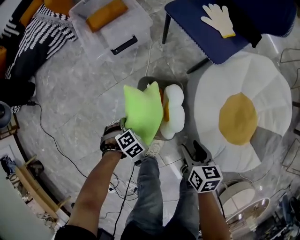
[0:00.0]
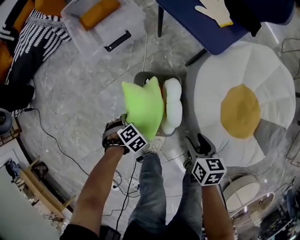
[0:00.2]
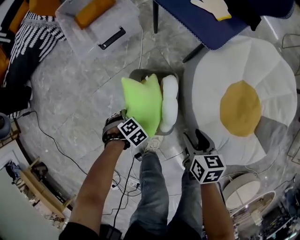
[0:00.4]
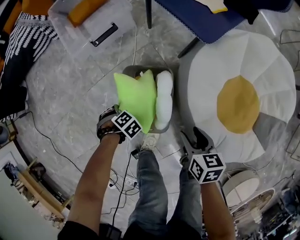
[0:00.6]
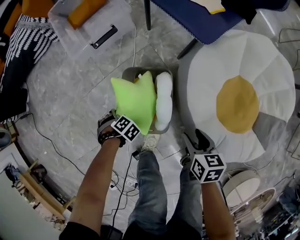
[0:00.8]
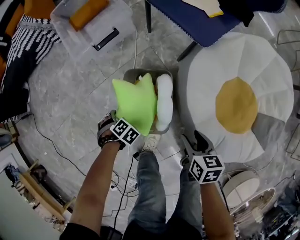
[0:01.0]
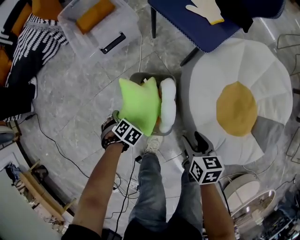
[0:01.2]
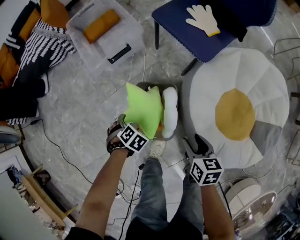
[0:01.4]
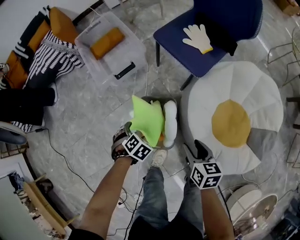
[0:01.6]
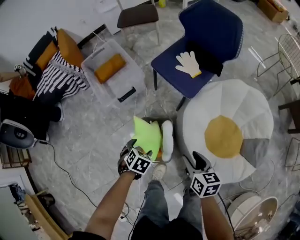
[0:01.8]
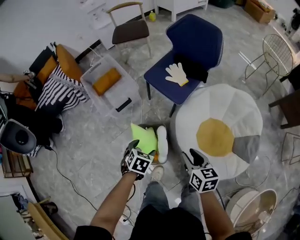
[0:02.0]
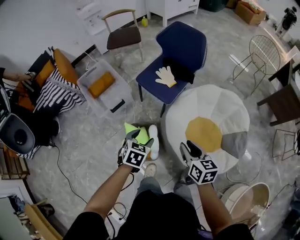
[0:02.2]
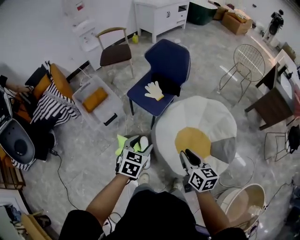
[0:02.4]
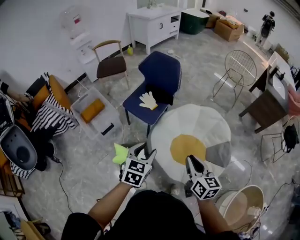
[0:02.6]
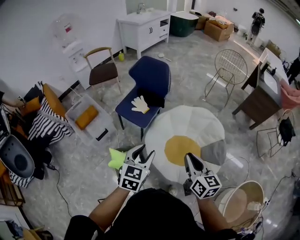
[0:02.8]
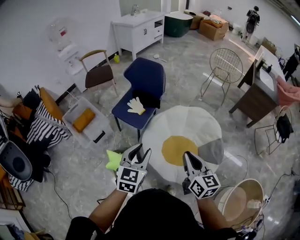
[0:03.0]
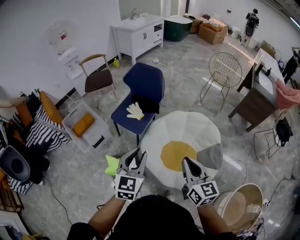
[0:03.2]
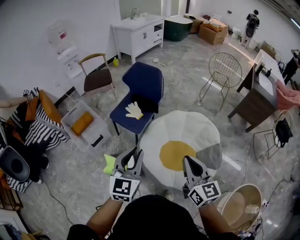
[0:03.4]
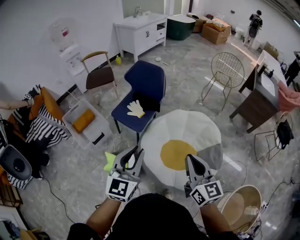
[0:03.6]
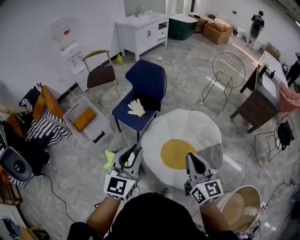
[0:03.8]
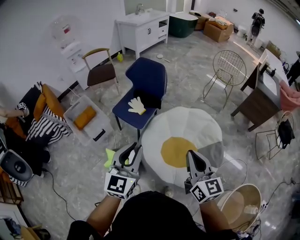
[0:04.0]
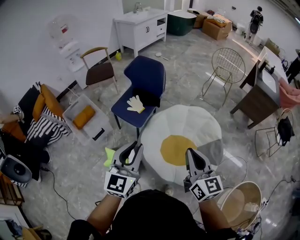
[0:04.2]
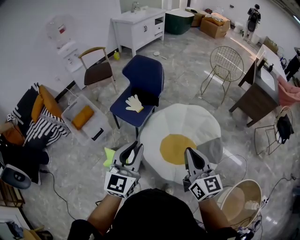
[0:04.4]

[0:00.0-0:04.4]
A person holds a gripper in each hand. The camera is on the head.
0:00.0 to 0:01.4: The left gripper goes downward and returns, about 10 cm each way, and opens its fingers.
0:01.4 to 0:03.0: Both grippers travel together upward, roughly 50 cm. The left gripper tilts its fingers roughly 60 degrees upward, and closes its fingers; the right gripper tilts its fingers approximately 40 degrees upward, and closes up.
0:03.0 to 0:04.4: The left gripper shifts roughly 5 cm upward. Meanwhile the right gripper moves some 5 cm.

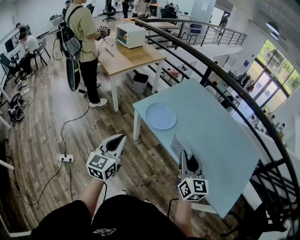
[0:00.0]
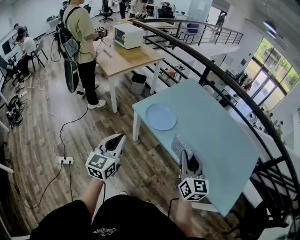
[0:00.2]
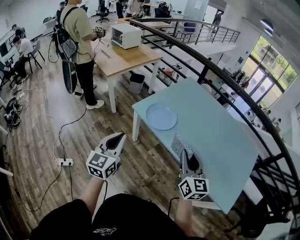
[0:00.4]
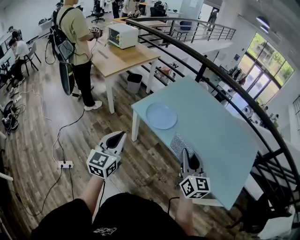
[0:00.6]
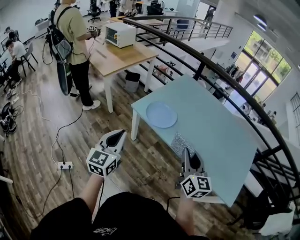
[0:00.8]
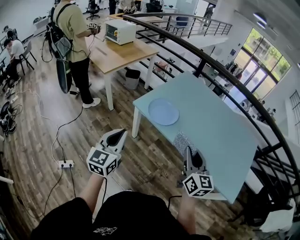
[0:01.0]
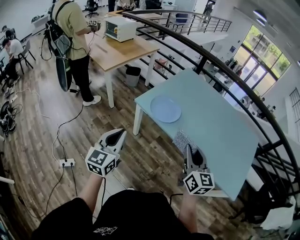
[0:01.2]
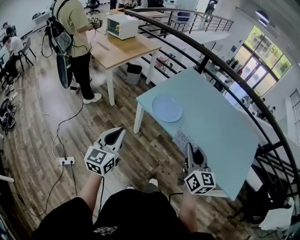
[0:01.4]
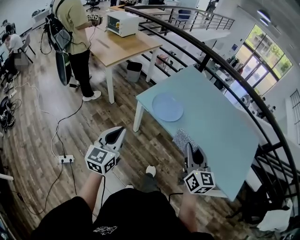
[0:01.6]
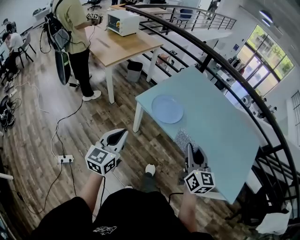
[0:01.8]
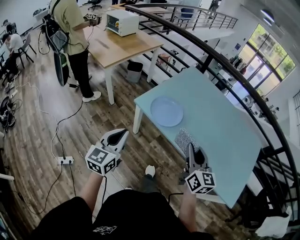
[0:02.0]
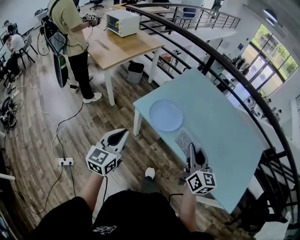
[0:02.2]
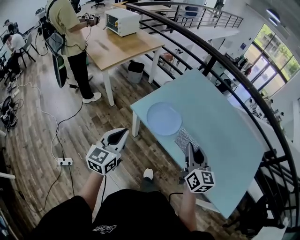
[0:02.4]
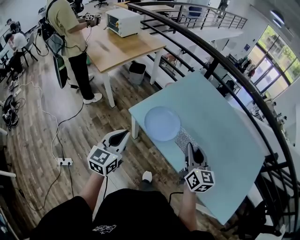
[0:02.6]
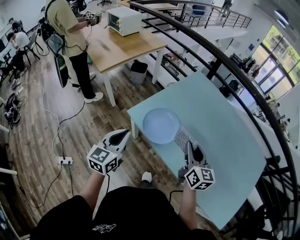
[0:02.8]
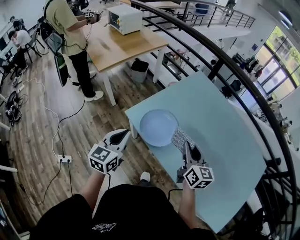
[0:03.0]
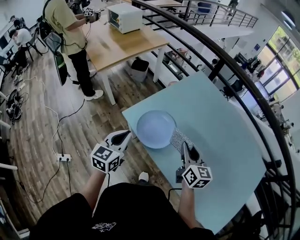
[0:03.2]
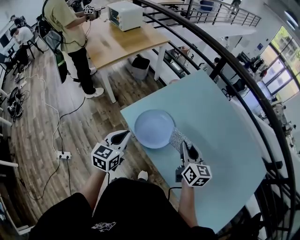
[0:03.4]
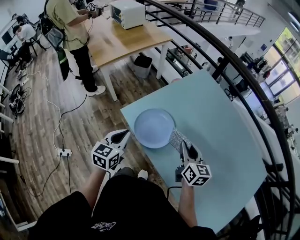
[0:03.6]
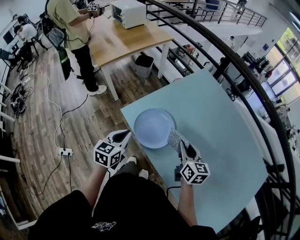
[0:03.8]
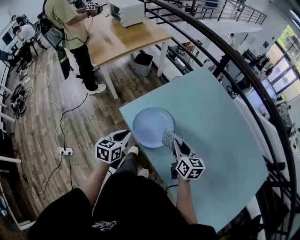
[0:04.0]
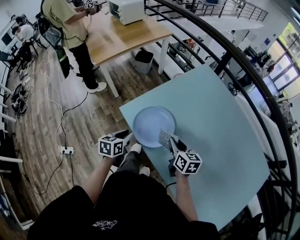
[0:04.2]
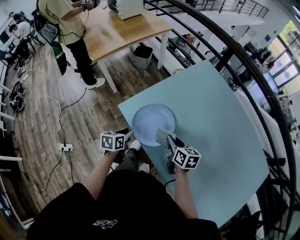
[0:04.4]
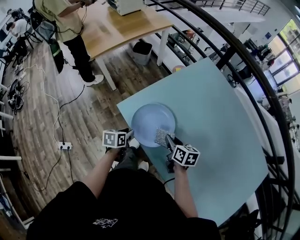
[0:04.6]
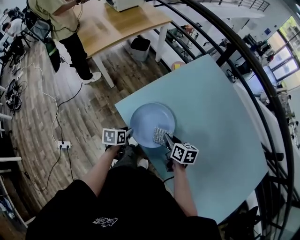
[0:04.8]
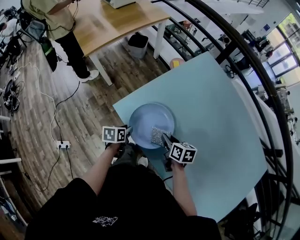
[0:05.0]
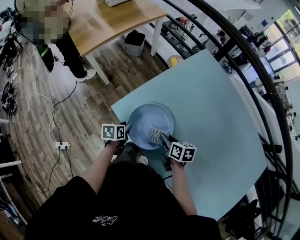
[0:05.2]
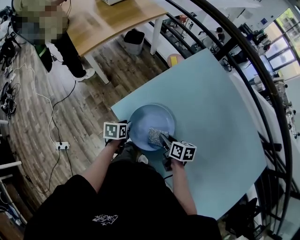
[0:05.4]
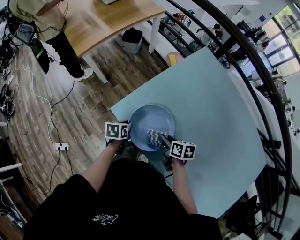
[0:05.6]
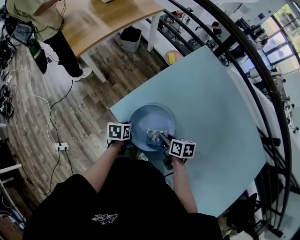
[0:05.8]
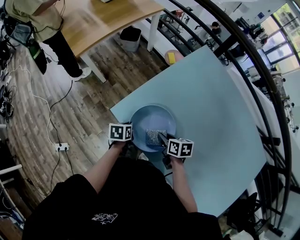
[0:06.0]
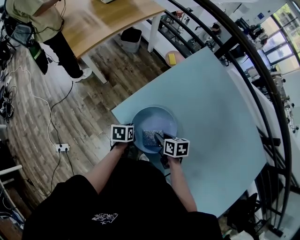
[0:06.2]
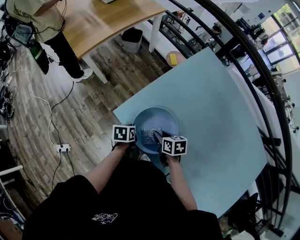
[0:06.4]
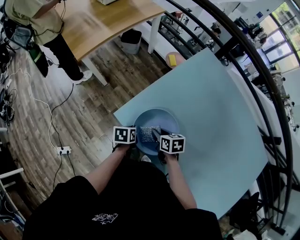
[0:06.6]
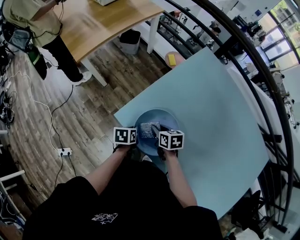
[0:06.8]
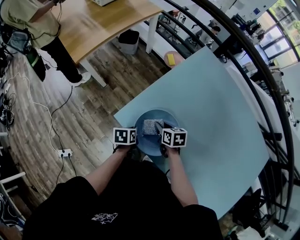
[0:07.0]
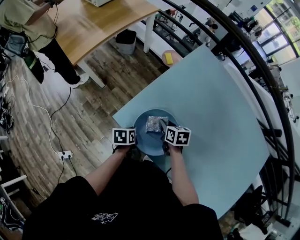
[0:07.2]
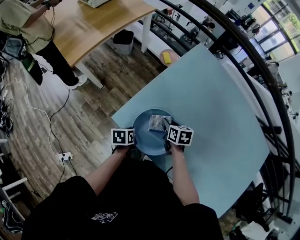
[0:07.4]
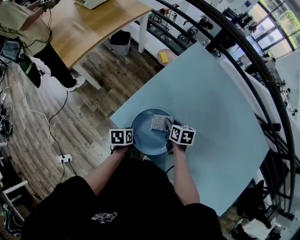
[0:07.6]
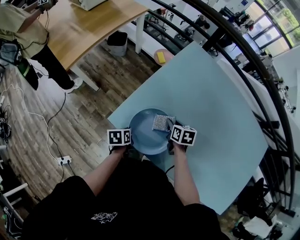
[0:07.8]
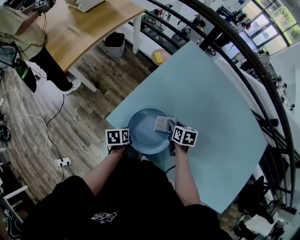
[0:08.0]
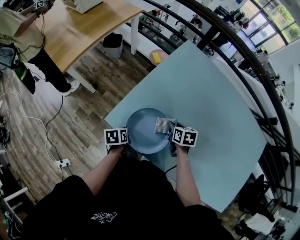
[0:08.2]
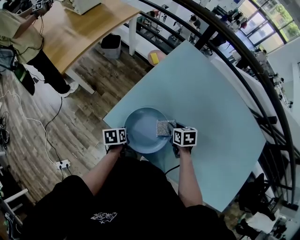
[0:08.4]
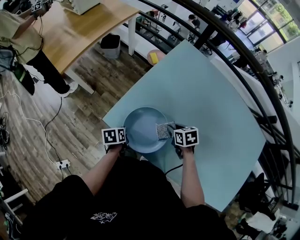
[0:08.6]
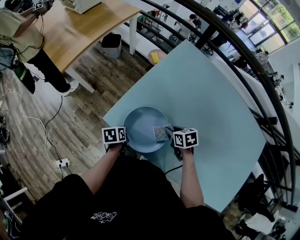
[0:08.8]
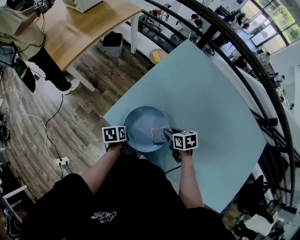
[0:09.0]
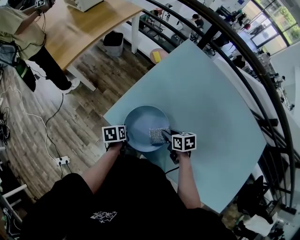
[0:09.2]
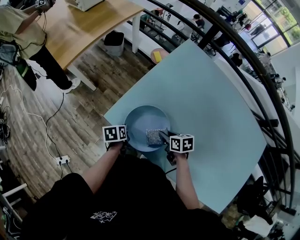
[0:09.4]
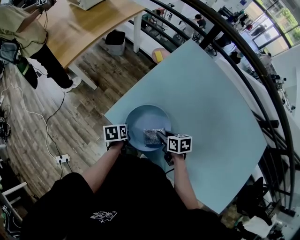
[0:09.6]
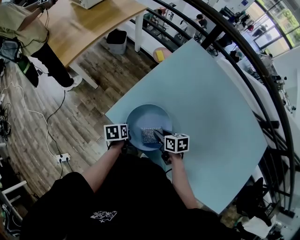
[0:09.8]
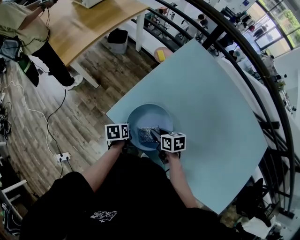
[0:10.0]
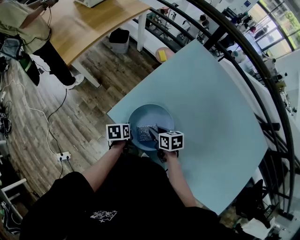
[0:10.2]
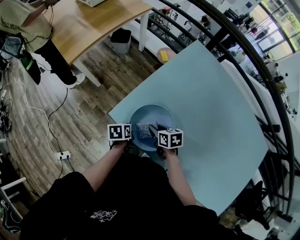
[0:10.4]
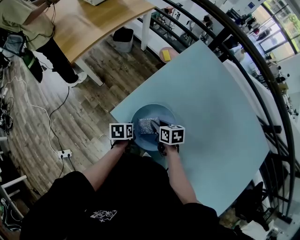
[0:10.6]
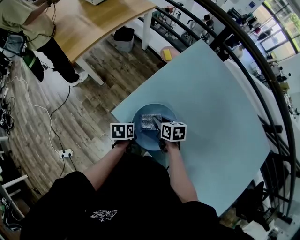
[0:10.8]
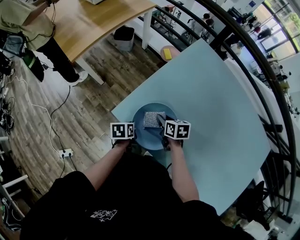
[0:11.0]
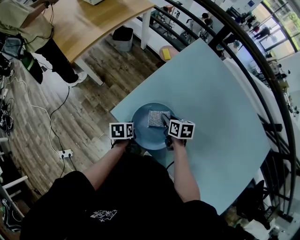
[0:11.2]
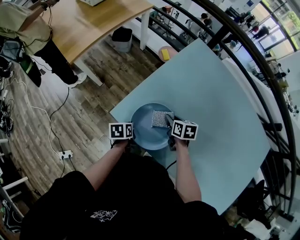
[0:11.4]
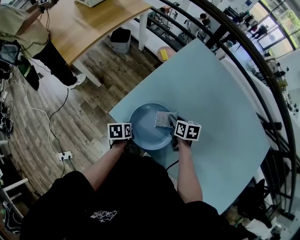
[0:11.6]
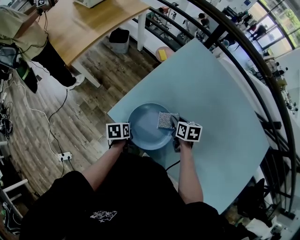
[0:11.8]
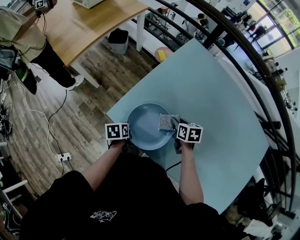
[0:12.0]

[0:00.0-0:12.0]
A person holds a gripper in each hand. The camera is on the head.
0:00.0 to 0:01.6: The two grippers go roughly 10 cm to the left.
0:01.6 to 0:03.0: The left gripper heads forward and to the right, covering some 25 cm. The right gripper heads forward, covering some 25 cm.
0:03.0 to 0:04.4: The right gripper heads downward and forward, covering about 20 cm, and swivels about 30 degrees, while the left gripper shifts some 20 cm downward, rotates roughly 40 degrees, and opens its fingers.
0:04.4 to 0:06.0: The right gripper goes some 10 cm downward, and turns by approximately 20 degrees; the left gripper is displaced forward and downward by roughly 10 cm.
0:06.0 to 0:07.6: The right gripper shifts about 10 cm forward, and goes to the left and returns, approximately 5 cm each way.
0:07.6 to 0:09.0: The right gripper is displaced backward by roughly 5 cm.
0:09.0 to 0:10.4: The right gripper moves to the left, approximately 10 cm.
0:10.4 to 0:12.0: The right gripper heads to the right, covering about 15 cm.

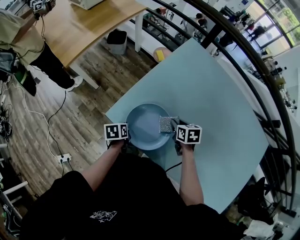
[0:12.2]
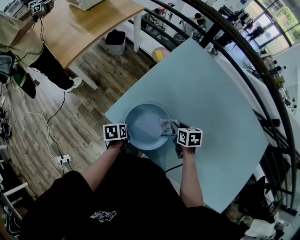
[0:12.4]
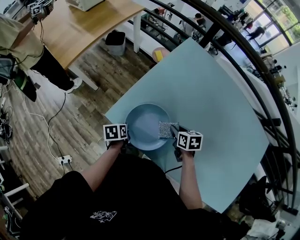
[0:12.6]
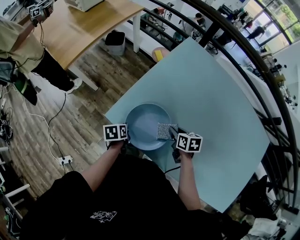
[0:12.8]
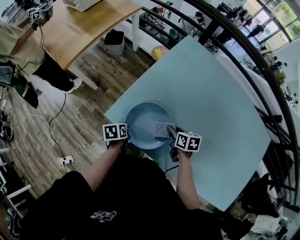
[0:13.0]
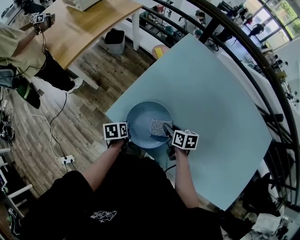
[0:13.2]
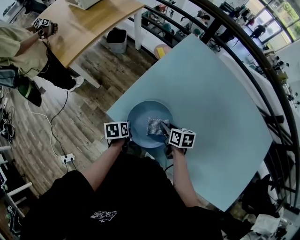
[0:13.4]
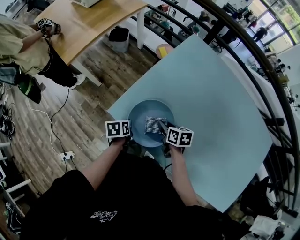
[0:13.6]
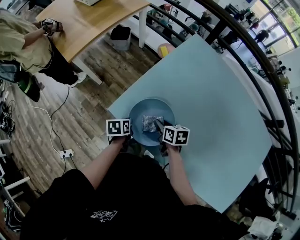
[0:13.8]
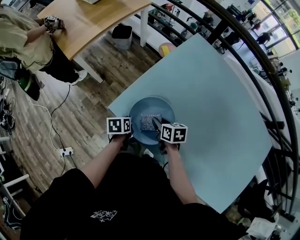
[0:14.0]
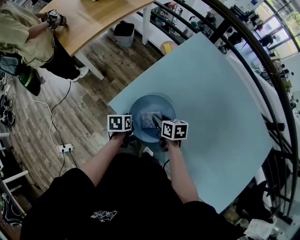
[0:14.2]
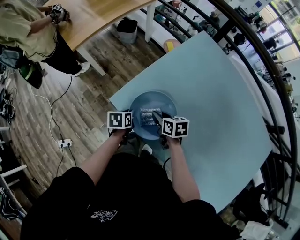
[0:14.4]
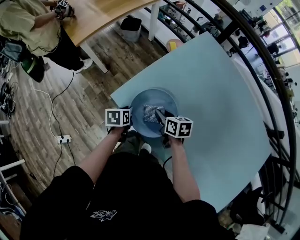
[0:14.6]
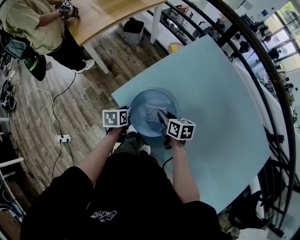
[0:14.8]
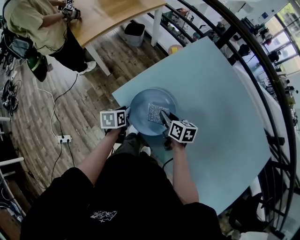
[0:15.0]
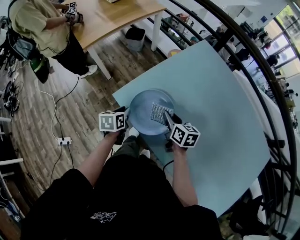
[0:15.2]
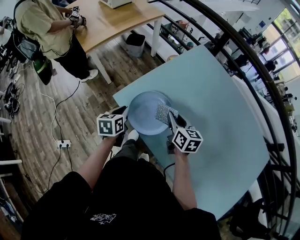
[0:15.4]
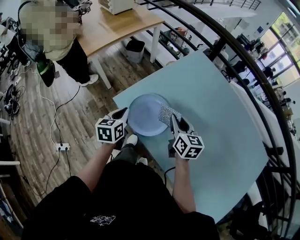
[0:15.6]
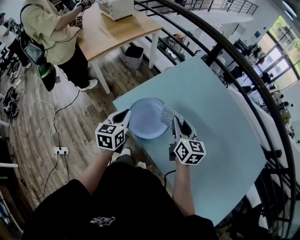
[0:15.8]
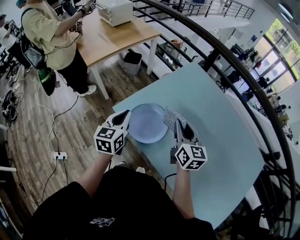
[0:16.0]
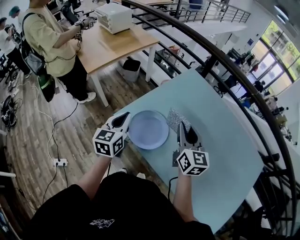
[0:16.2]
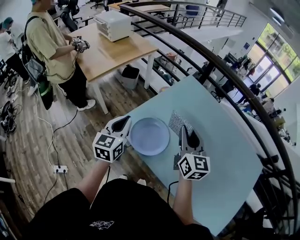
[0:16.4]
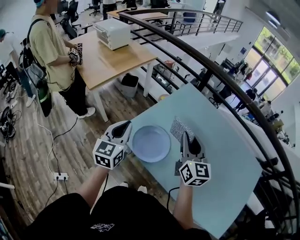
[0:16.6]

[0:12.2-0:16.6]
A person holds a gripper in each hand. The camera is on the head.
0:12.2 to 0:13.6: The right gripper shifts some 5 cm to the left.
0:13.6 to 0:15.2: The two grippers go some 5 cm upward.
0:15.2 to 0:16.6: Both grippers travel together upward, about 30 cm. The left gripper tilts its fingers about 40 degrees upward; the right gripper turns by approximately 40 degrees.

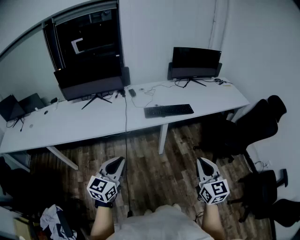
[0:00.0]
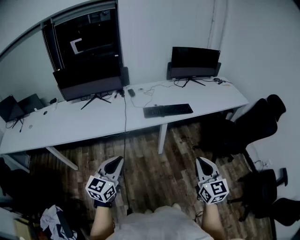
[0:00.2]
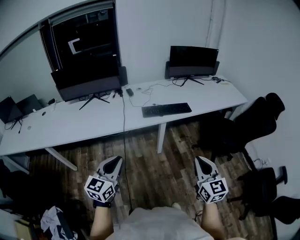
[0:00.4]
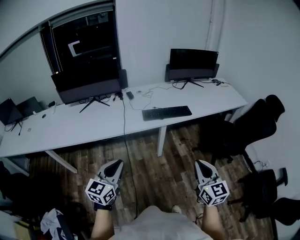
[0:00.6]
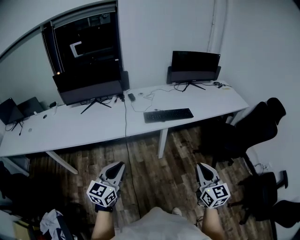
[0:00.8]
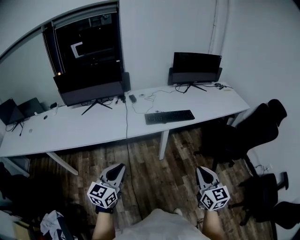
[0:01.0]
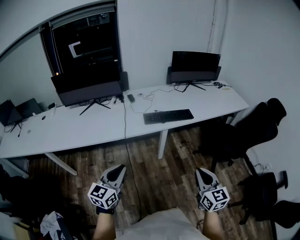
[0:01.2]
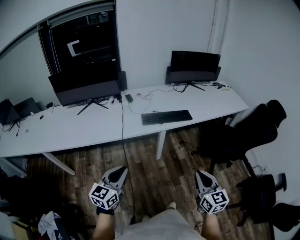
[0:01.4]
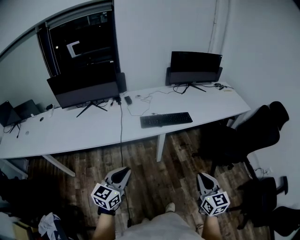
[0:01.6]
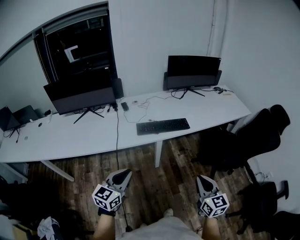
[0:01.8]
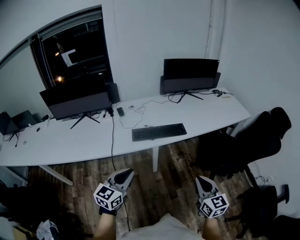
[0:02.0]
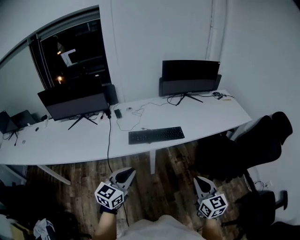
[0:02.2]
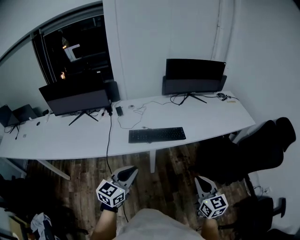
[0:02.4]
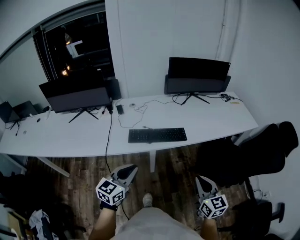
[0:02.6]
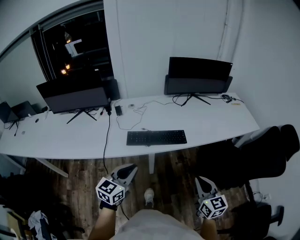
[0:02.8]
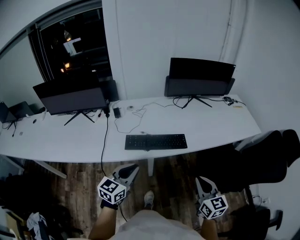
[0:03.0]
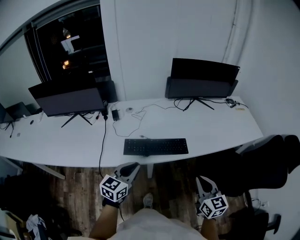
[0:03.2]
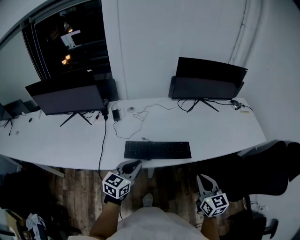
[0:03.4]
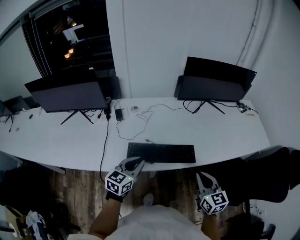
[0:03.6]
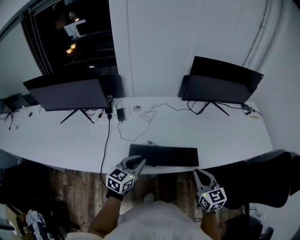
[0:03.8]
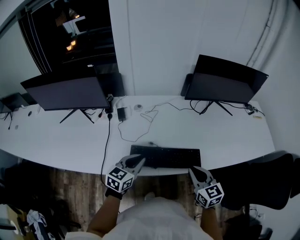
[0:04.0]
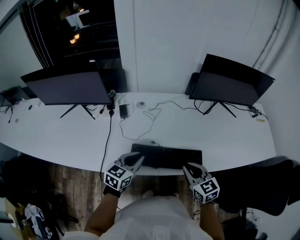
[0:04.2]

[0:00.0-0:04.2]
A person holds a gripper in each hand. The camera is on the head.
0:00.0 to 0:01.4: There are only small adjustments of the grippers.
0:01.4 to 0:02.8: The grippers both shift forward and to the right by roughly 30 cm.
0:02.8 to 0:04.2: The right gripper shifts about 35 cm forward and to the left, and rotates roughly 30 degrees; the left gripper heads forward, covering about 30 cm.
